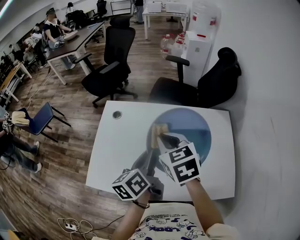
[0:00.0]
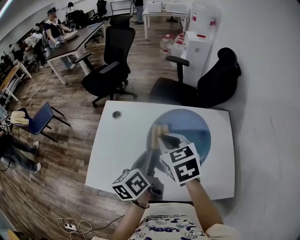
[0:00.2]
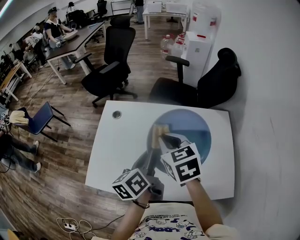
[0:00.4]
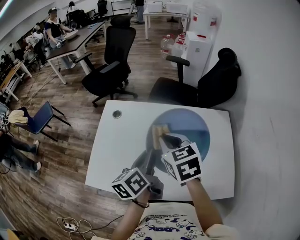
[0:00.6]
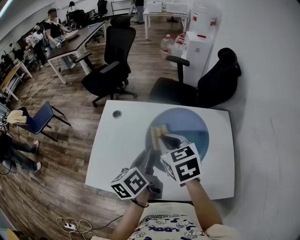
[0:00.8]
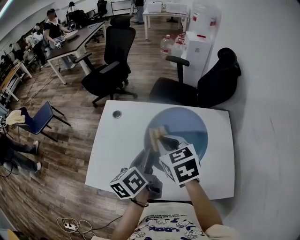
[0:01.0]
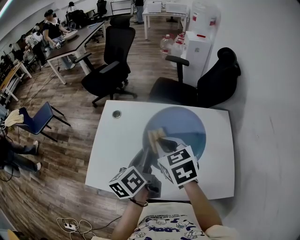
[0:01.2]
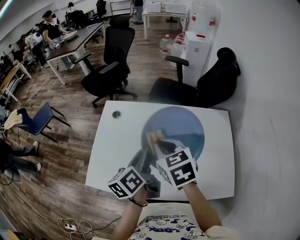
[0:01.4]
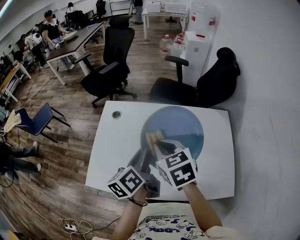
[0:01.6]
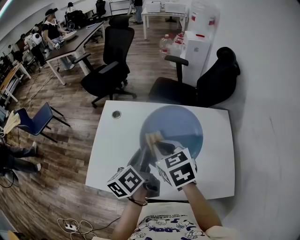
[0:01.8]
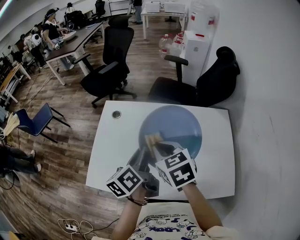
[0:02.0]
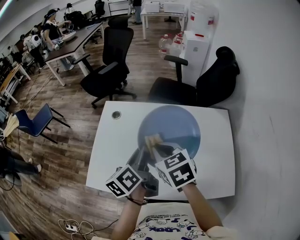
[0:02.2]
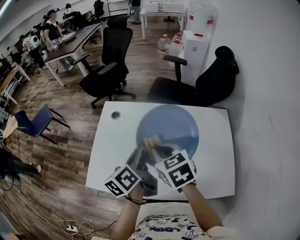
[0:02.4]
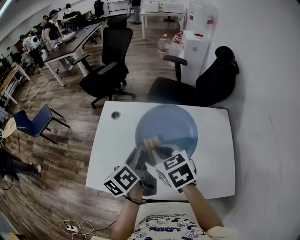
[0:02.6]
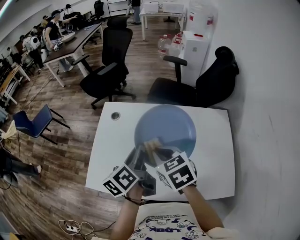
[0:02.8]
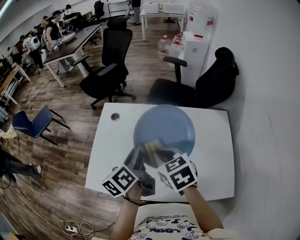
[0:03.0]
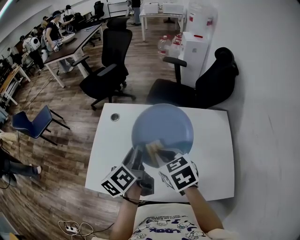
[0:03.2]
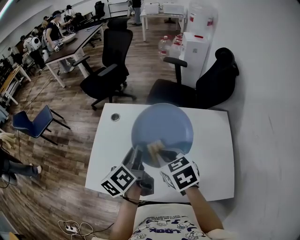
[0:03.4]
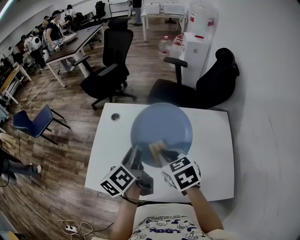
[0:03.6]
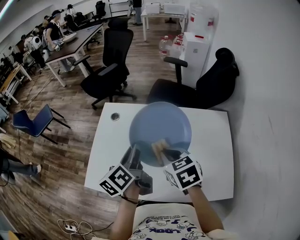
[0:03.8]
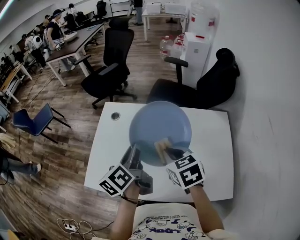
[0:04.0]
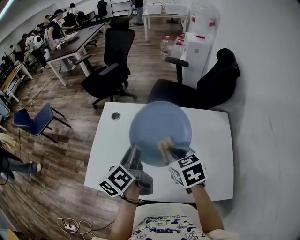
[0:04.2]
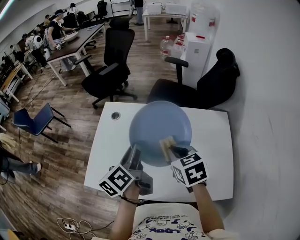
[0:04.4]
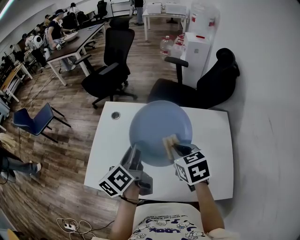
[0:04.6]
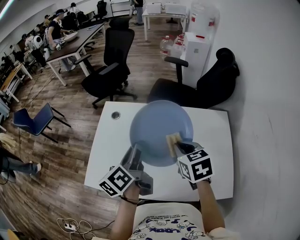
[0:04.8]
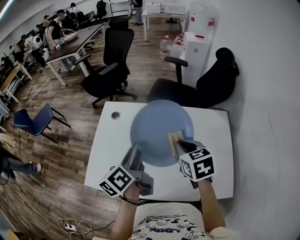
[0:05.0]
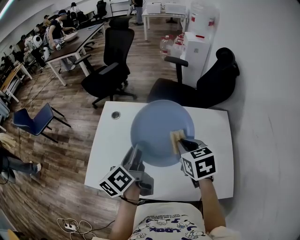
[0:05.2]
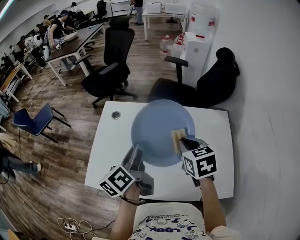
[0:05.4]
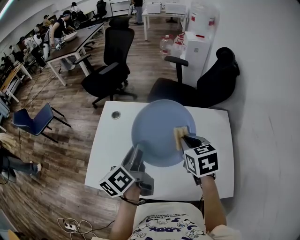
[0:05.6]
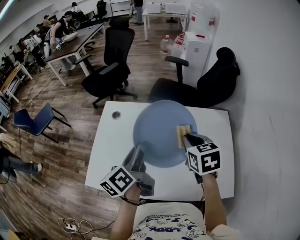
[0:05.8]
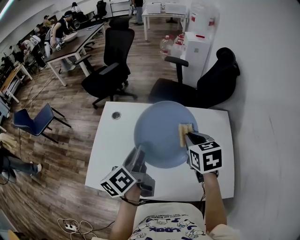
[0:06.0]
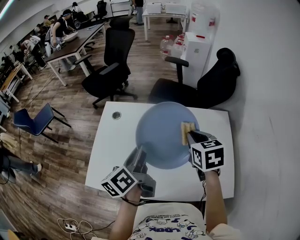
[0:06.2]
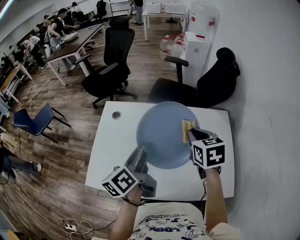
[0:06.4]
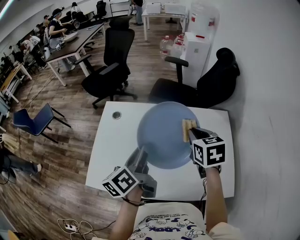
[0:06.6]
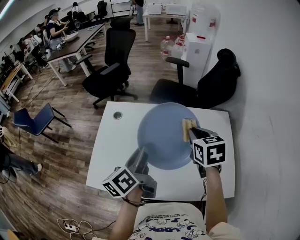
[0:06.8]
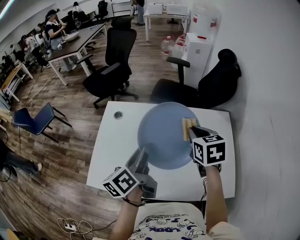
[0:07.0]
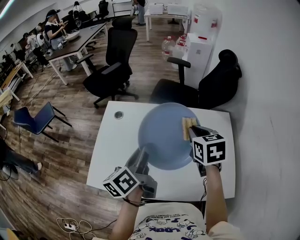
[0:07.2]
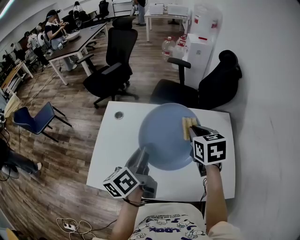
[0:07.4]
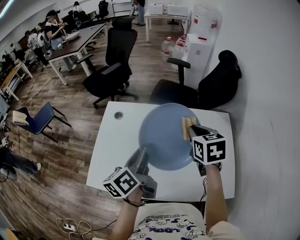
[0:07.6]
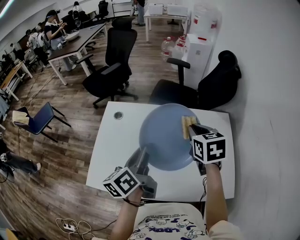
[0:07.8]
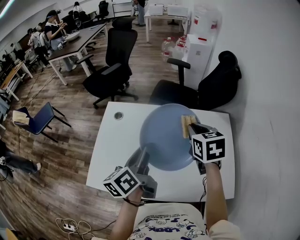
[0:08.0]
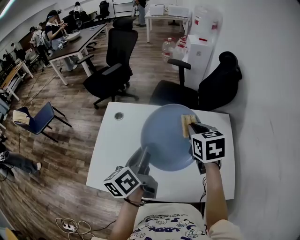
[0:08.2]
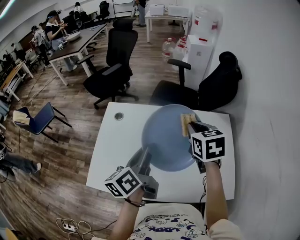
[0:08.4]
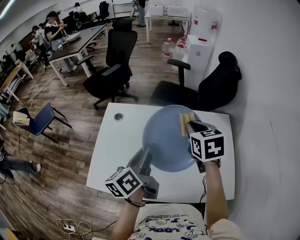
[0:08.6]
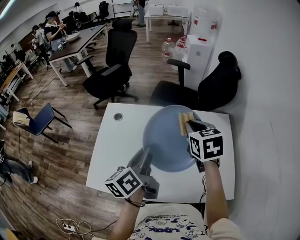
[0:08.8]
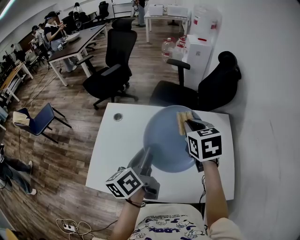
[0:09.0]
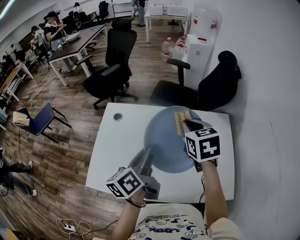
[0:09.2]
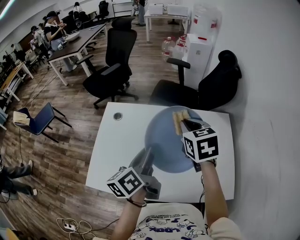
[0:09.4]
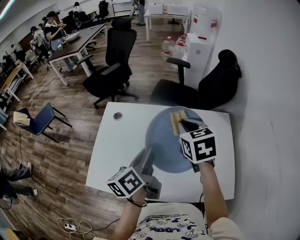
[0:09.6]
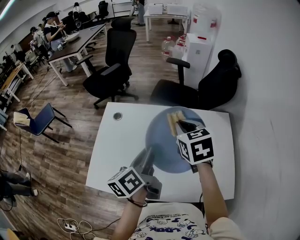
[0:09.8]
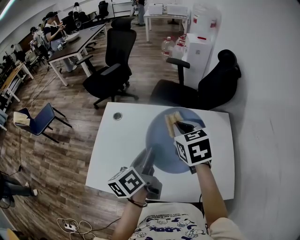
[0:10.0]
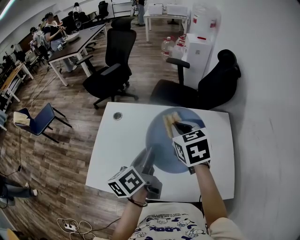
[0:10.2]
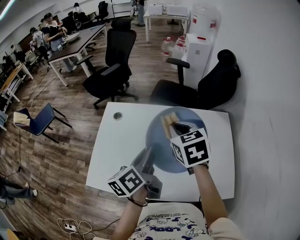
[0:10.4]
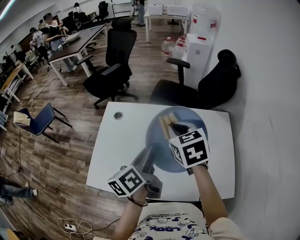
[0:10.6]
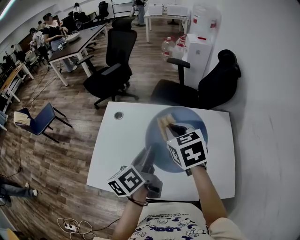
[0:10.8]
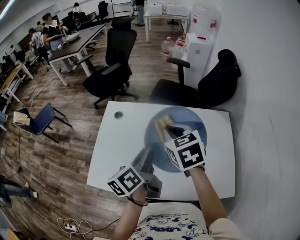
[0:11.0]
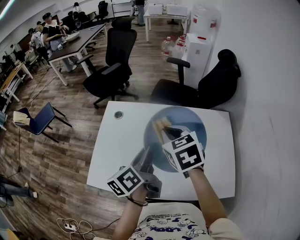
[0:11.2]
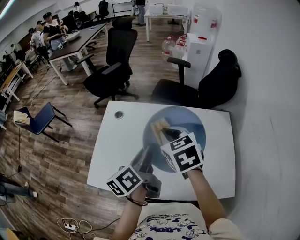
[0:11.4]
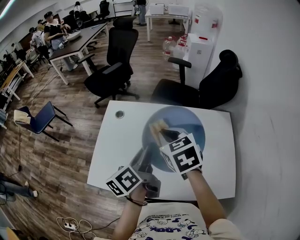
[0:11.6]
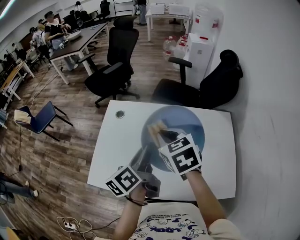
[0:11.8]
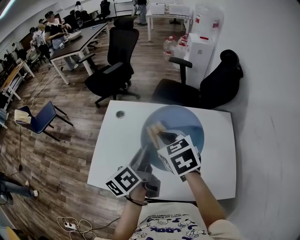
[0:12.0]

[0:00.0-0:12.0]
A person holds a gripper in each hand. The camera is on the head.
0.0 to 1.6 s: The grippers move only a little.
1.6 to 3.0 s: The grippers move only a little.
3.0 to 4.4 s: The right gripper goes about 5 cm to the right.
4.4 to 6.0 s: The right gripper goes roughly 5 cm to the right.
6.0 to 7.6 s: There are only small adjustments of the grippers.
7.6 to 9.0 s: The grippers move only a little.
9.0 to 10.4 s: The right gripper travels to the left by roughly 5 cm.
10.4 to 12.0 s: The right gripper moves to the left, about 5 cm.

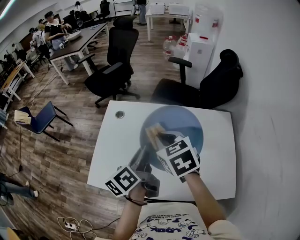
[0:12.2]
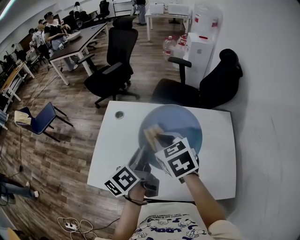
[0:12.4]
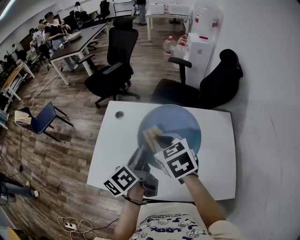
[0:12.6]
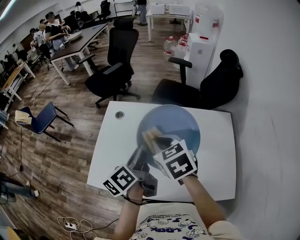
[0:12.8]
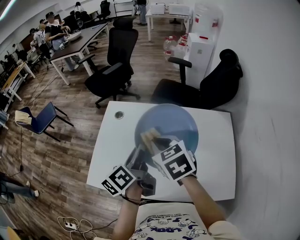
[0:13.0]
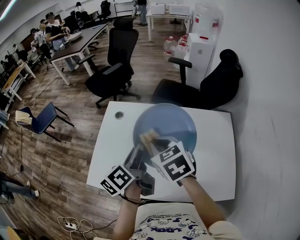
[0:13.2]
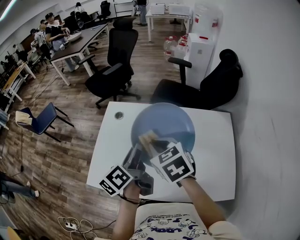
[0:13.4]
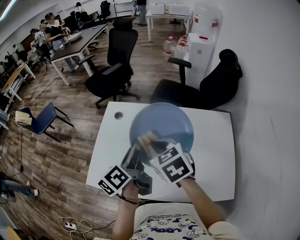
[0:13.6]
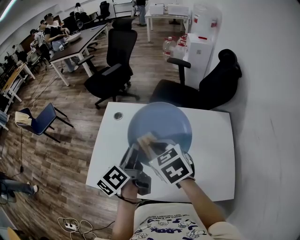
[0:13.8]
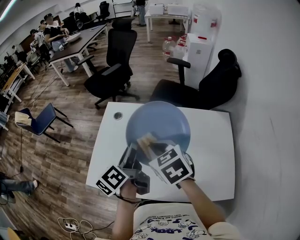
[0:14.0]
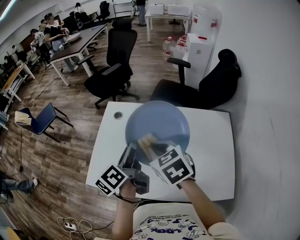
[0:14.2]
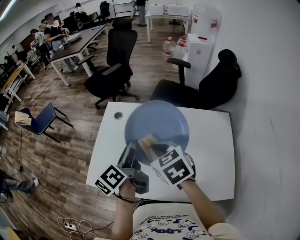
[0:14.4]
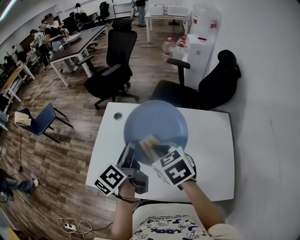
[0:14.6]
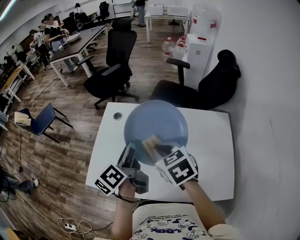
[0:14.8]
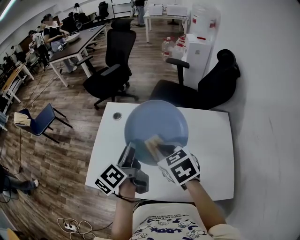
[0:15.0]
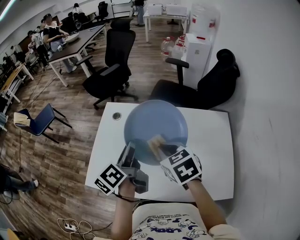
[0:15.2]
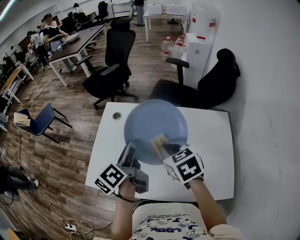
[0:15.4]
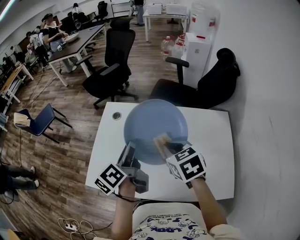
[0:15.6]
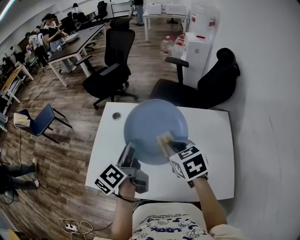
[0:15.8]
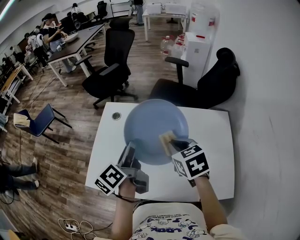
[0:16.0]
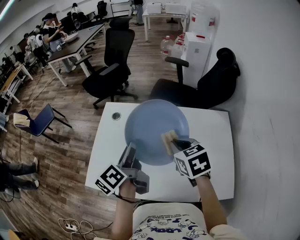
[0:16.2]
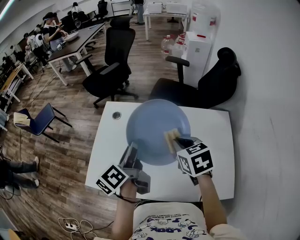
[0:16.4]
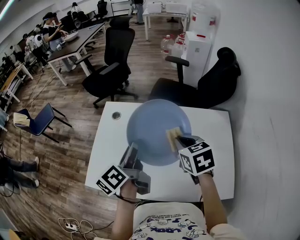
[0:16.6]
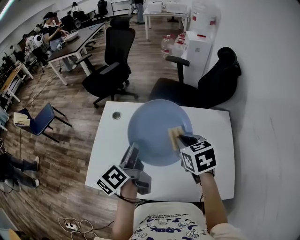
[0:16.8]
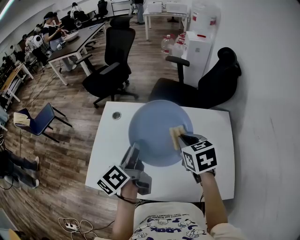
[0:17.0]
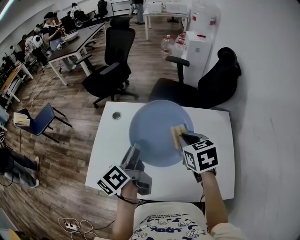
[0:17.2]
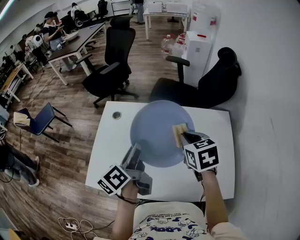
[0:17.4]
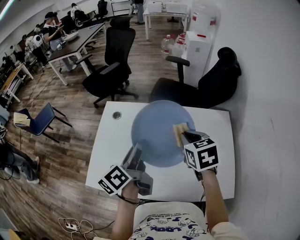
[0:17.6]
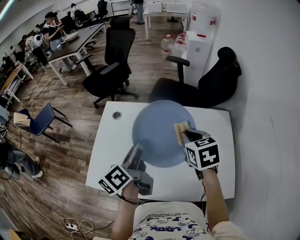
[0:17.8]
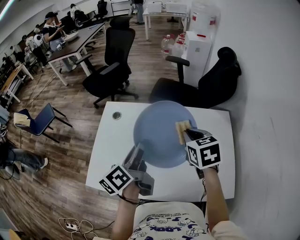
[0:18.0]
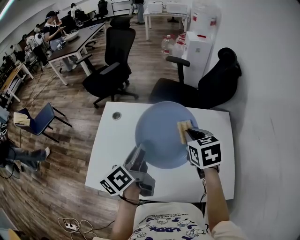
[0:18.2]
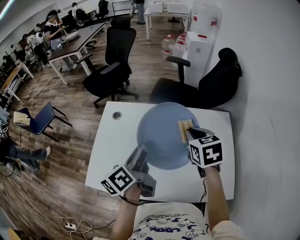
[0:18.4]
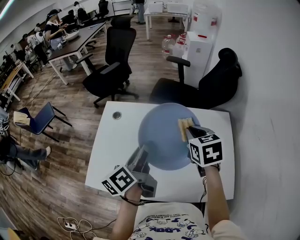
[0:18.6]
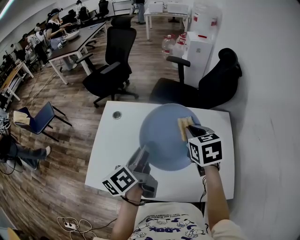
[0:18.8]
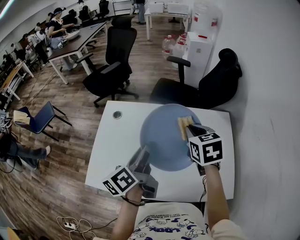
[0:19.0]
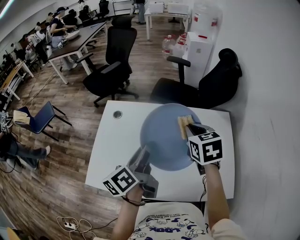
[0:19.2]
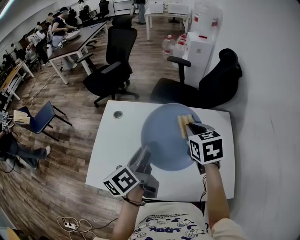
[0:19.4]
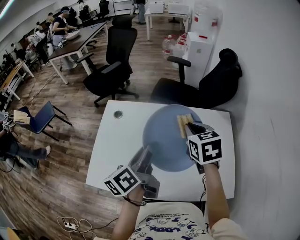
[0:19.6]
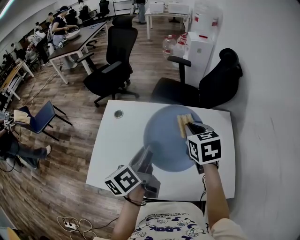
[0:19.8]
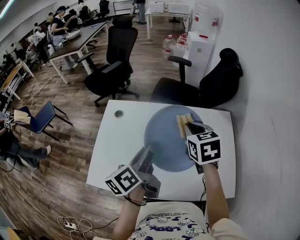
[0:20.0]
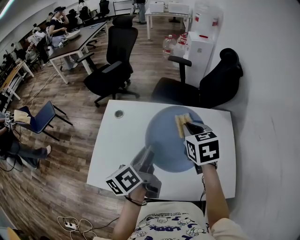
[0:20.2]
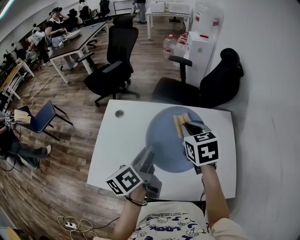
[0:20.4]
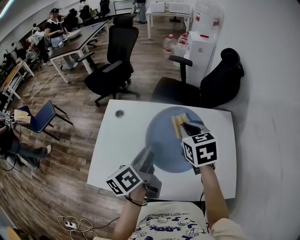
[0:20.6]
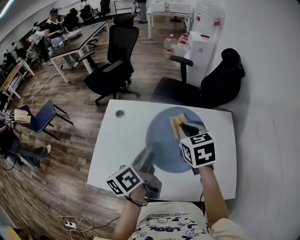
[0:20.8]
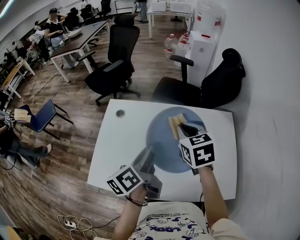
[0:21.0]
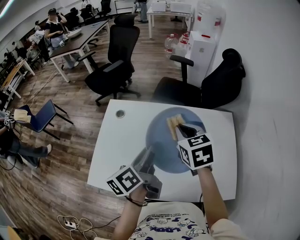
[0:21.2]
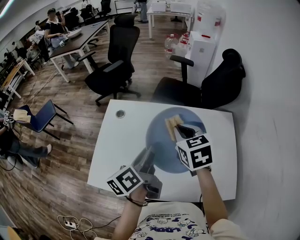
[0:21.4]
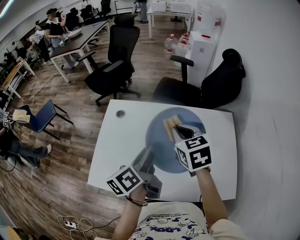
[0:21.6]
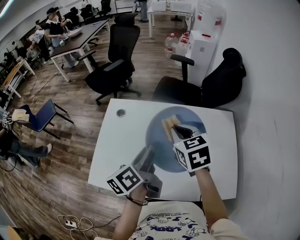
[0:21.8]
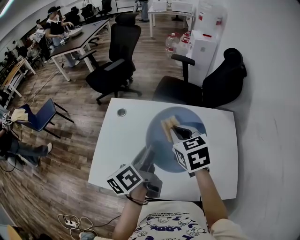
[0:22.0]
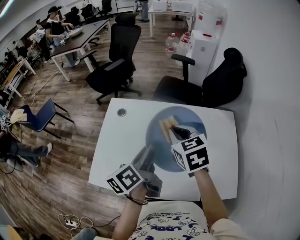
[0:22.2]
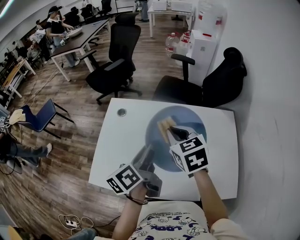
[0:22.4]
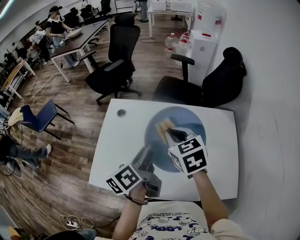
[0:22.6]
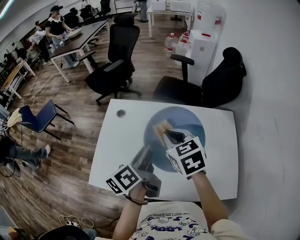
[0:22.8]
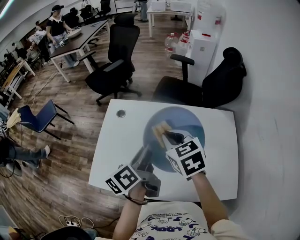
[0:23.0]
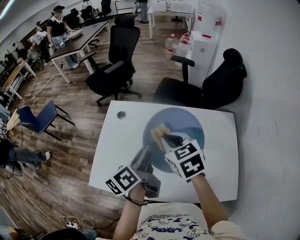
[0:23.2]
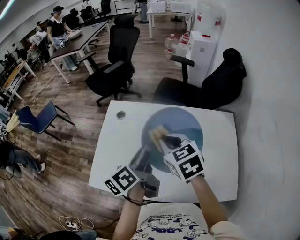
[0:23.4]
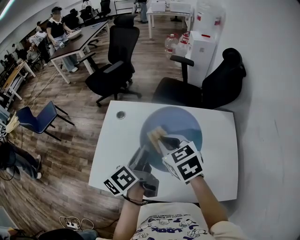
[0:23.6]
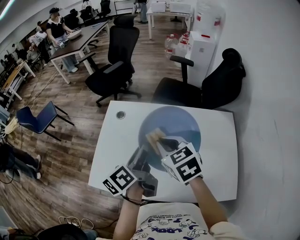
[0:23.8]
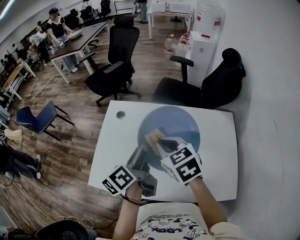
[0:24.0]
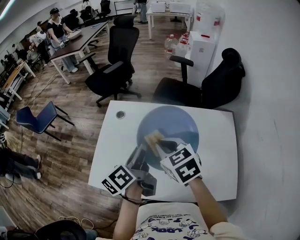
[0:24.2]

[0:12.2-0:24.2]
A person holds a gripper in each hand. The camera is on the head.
12.2 to 15.2 s: There are only small adjustments of the grippers.
15.2 to 16.6 s: The right gripper is displaced to the right by roughly 5 cm.
16.6 to 21.2 s: There are only small adjustments of the grippers.
21.2 to 22.6 s: The right gripper is displaced to the left by approximately 5 cm.
22.6 to 24.2 s: There are only small adjustments of the grippers.

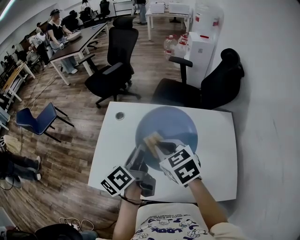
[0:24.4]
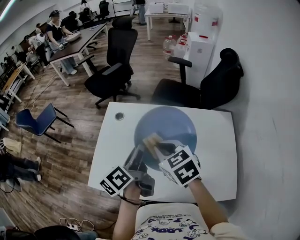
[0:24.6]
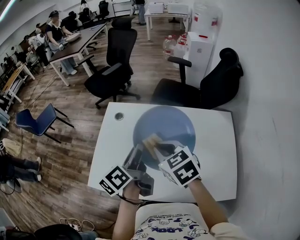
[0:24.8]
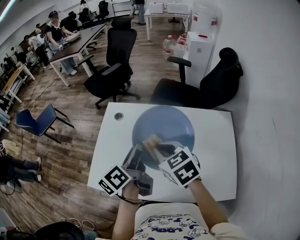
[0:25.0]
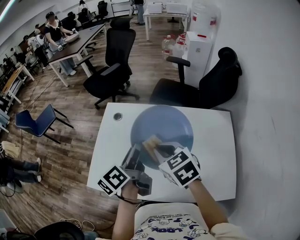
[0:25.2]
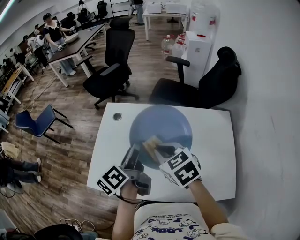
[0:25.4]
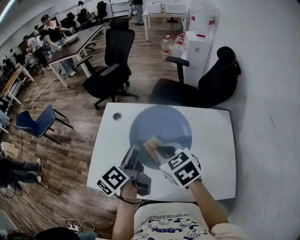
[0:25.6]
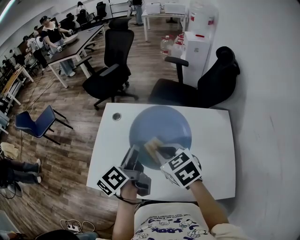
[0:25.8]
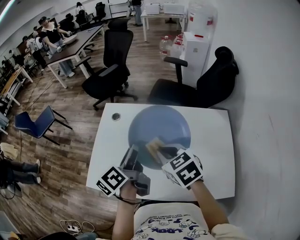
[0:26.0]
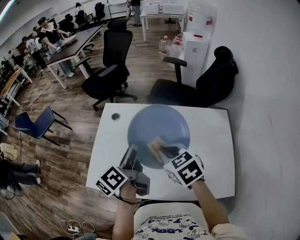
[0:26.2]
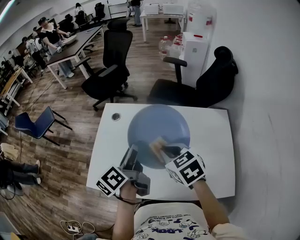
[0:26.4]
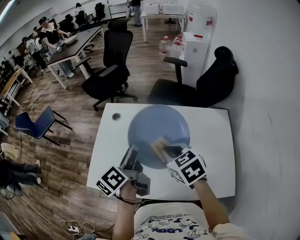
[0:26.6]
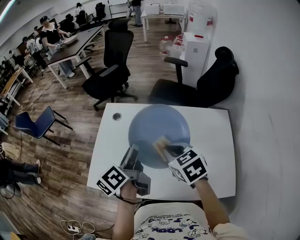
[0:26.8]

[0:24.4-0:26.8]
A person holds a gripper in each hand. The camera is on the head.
24.4 to 26.8 s: The grippers move only a little.
